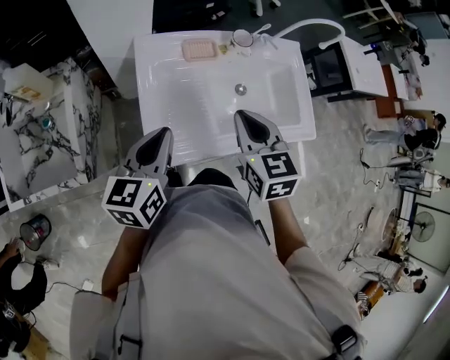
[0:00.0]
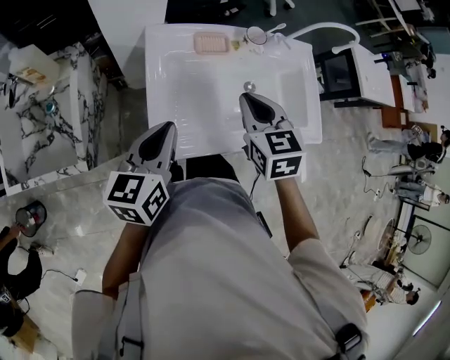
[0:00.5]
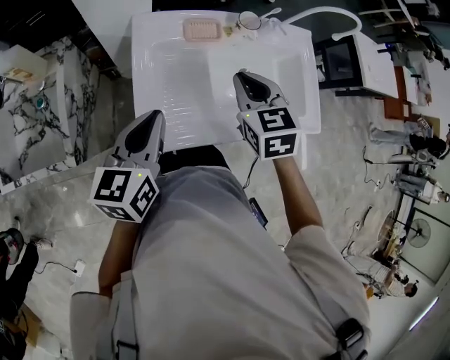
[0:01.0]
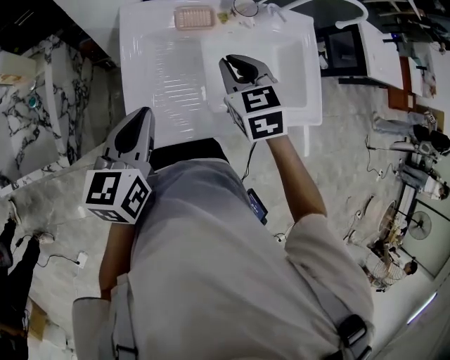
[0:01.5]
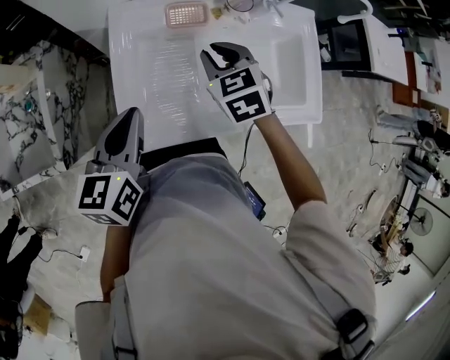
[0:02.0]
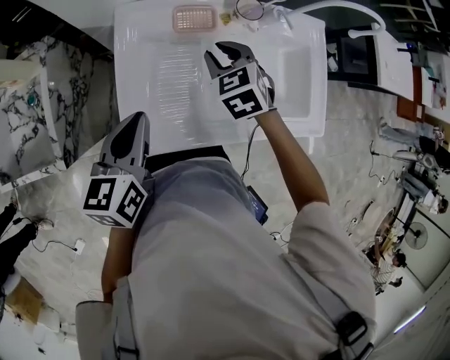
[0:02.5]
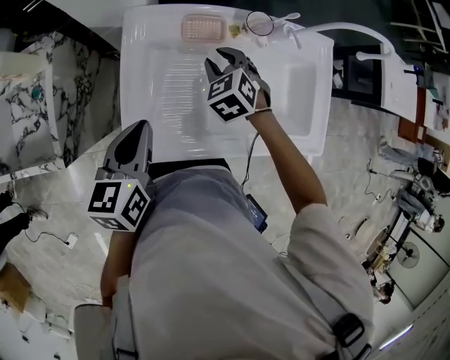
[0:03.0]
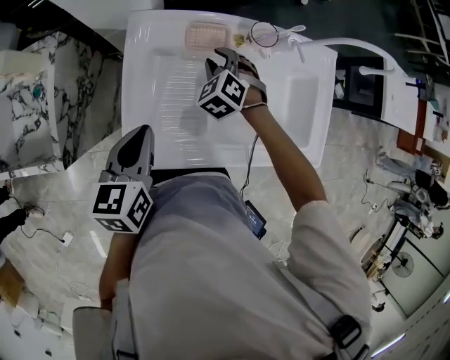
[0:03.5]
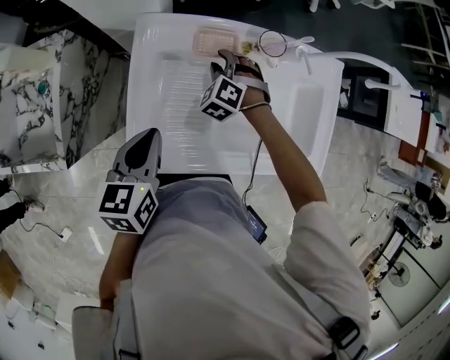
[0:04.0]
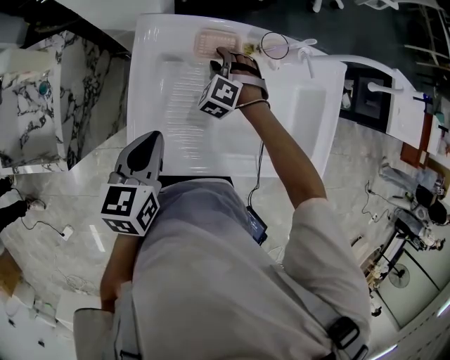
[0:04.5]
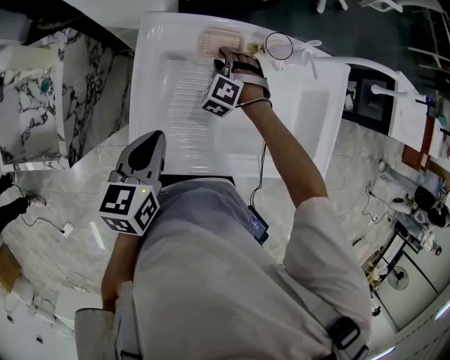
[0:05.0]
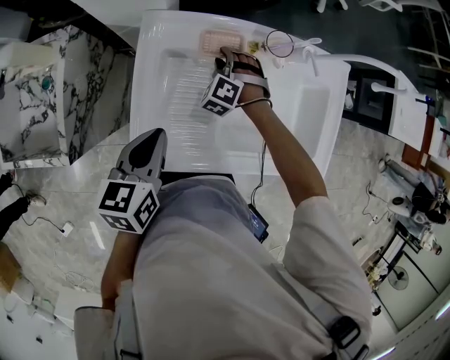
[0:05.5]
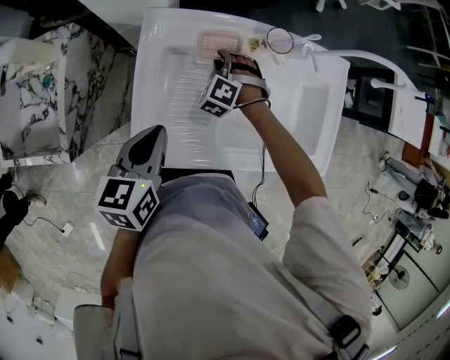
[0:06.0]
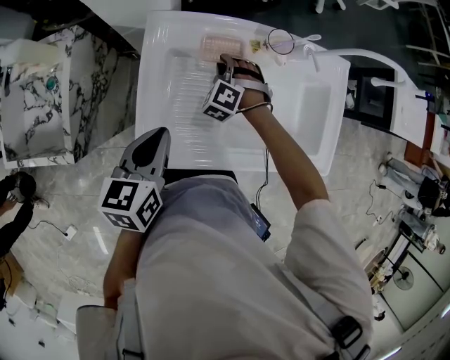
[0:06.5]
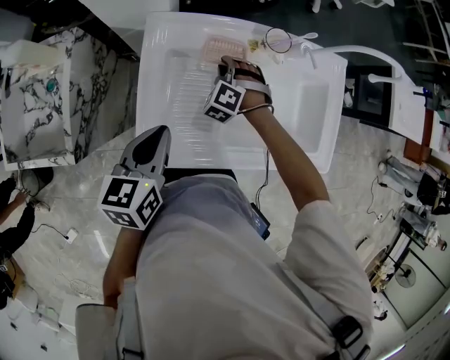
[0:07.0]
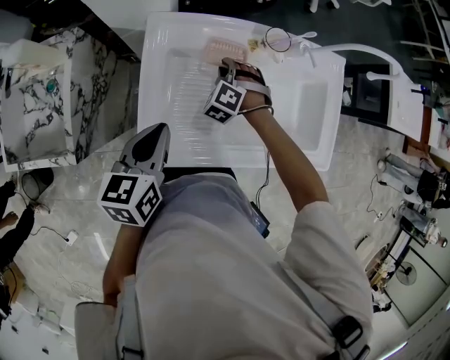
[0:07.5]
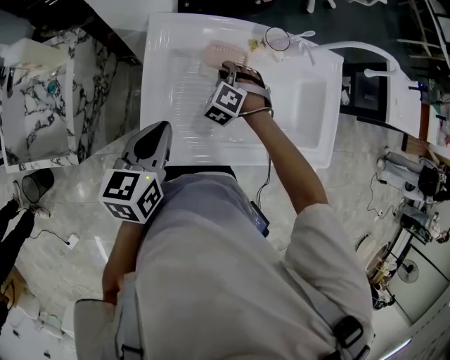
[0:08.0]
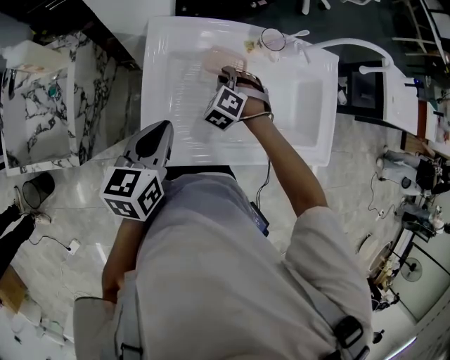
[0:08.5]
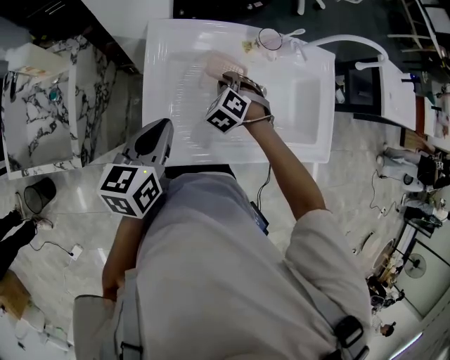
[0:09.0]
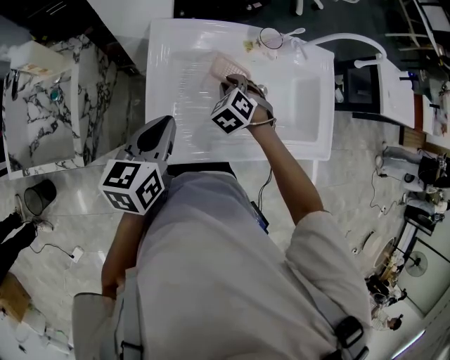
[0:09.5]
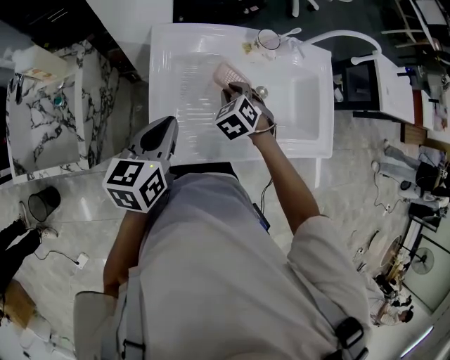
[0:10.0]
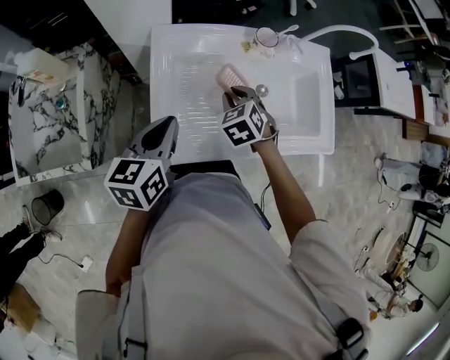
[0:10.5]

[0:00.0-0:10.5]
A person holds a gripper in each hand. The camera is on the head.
0:00.0 to 0:02.0: The right gripper moves forward and downward, about 15 cm, and swivels about 20 degrees.
0:02.0 to 0:04.0: The right gripper goes some 15 cm downward and forward, and twists about 40 degrees counterclockwise, seen from behind. The left gripper moves about 5 cm.
0:04.0 to 0:06.5: The grippers move only a little.
0:06.5 to 0:08.5: The right gripper ends up about 5 cm from where it was.
0:08.5 to 0:10.5: The right gripper moves backward and upward, some 10 cm, and changes its angle by approximately 30 degrees.

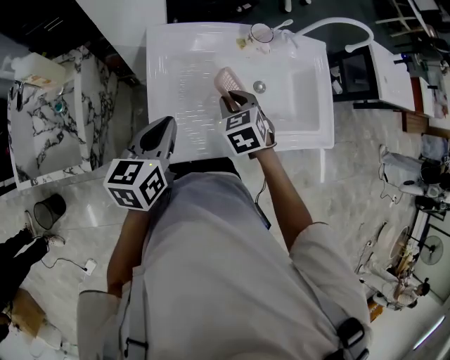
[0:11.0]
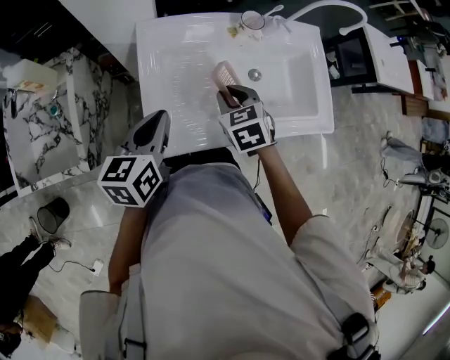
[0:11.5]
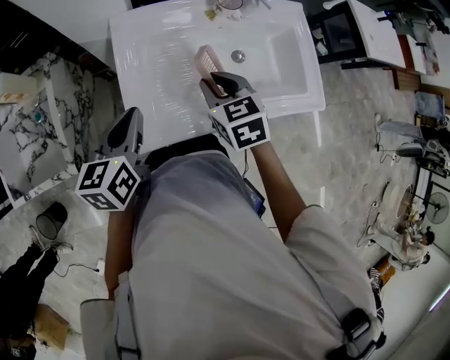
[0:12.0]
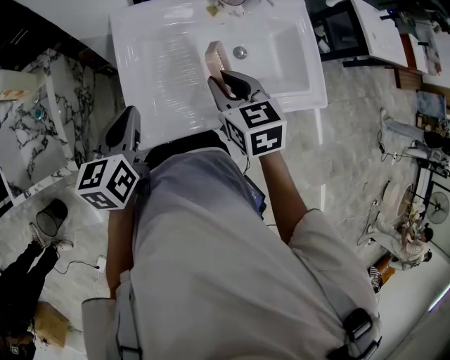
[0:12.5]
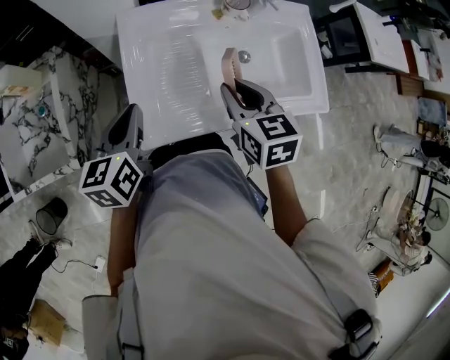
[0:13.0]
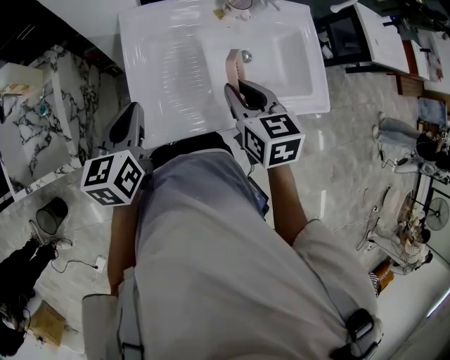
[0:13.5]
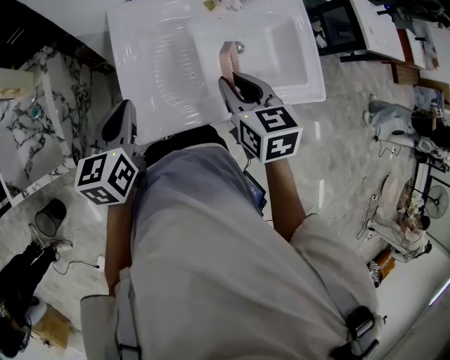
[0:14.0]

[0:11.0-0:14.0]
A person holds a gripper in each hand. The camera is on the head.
0:11.0 to 0:12.5: The right gripper is displaced upward by roughly 10 cm, and changes its angle by roughly 20 degrees.
0:12.5 to 0:14.0: There are only small adjustments of the grippers.

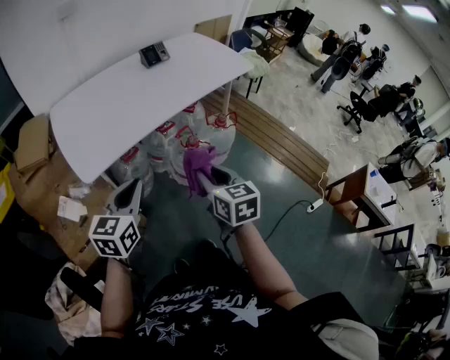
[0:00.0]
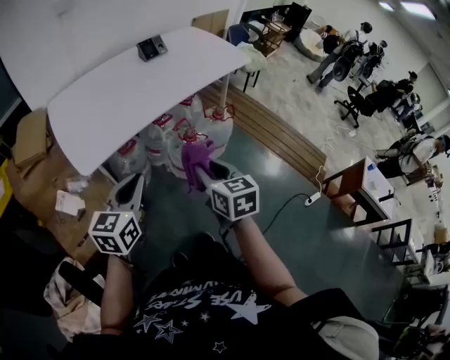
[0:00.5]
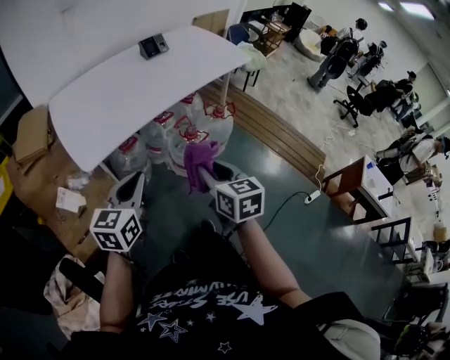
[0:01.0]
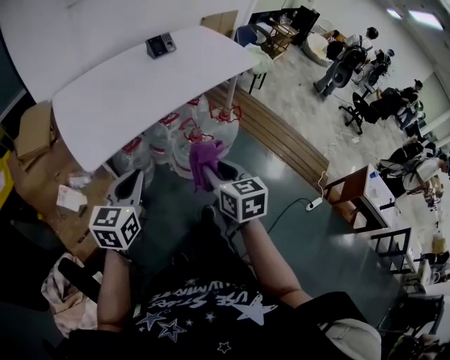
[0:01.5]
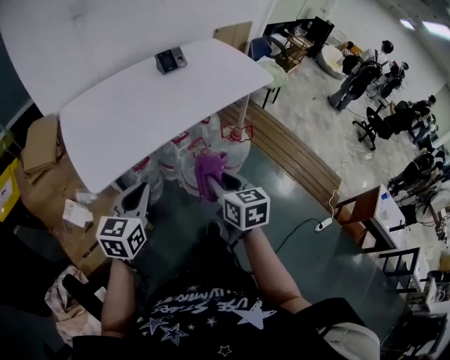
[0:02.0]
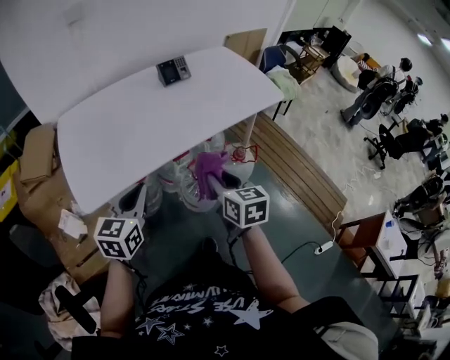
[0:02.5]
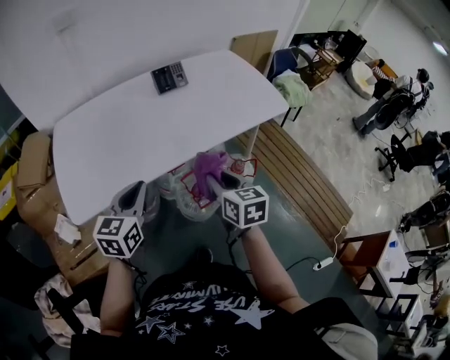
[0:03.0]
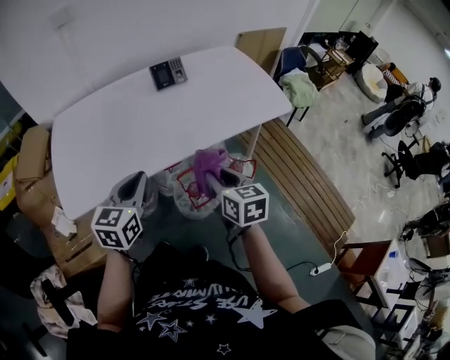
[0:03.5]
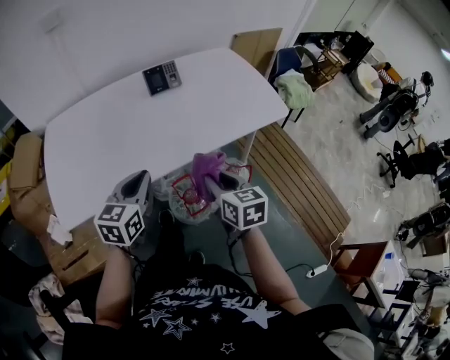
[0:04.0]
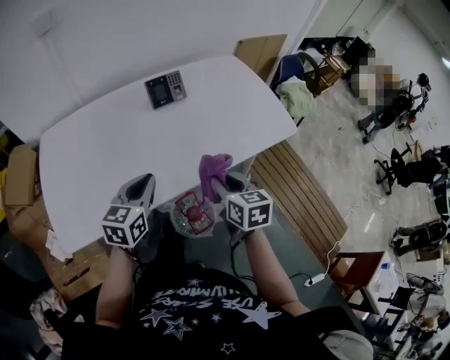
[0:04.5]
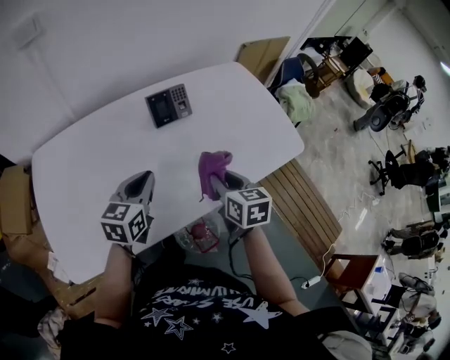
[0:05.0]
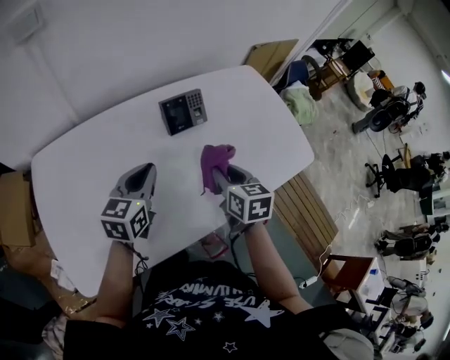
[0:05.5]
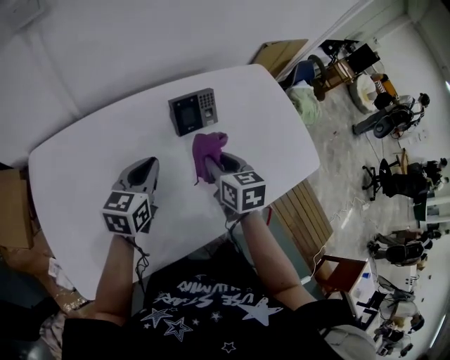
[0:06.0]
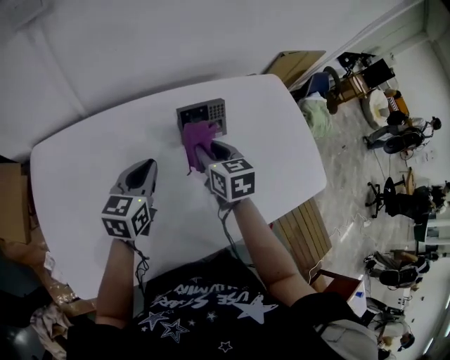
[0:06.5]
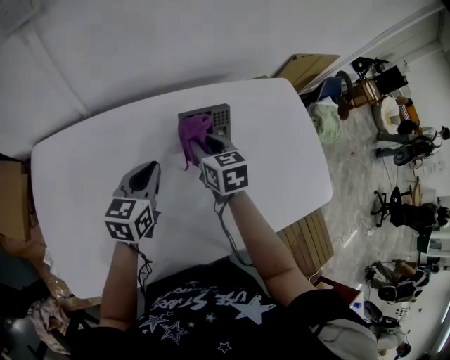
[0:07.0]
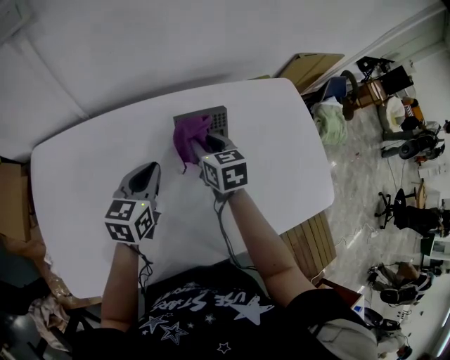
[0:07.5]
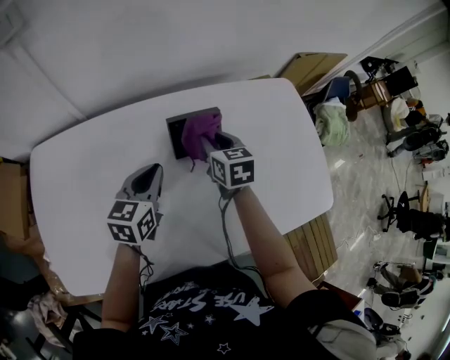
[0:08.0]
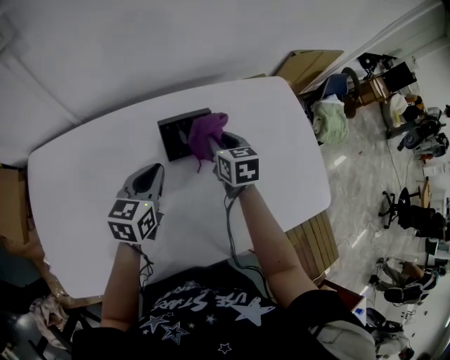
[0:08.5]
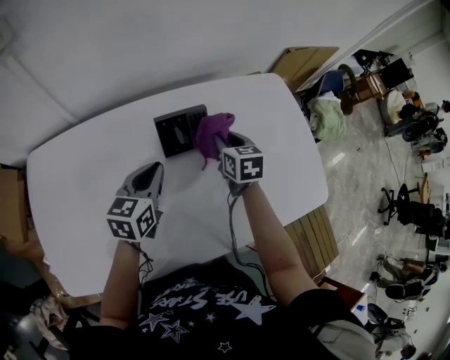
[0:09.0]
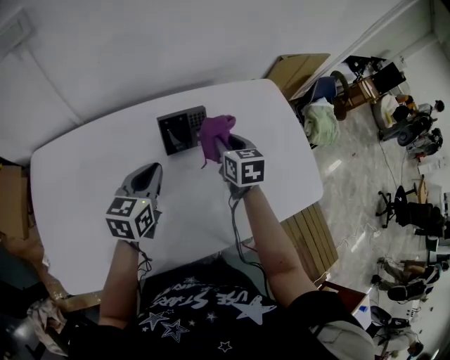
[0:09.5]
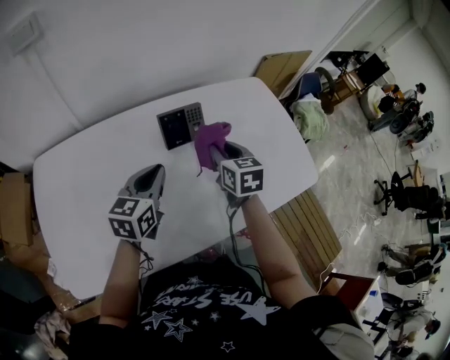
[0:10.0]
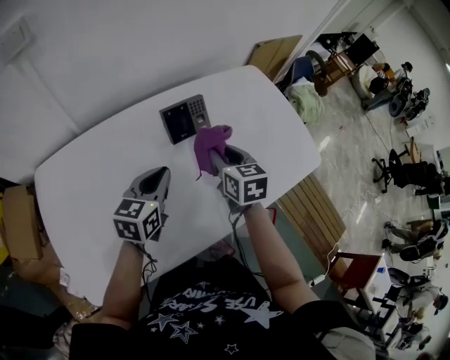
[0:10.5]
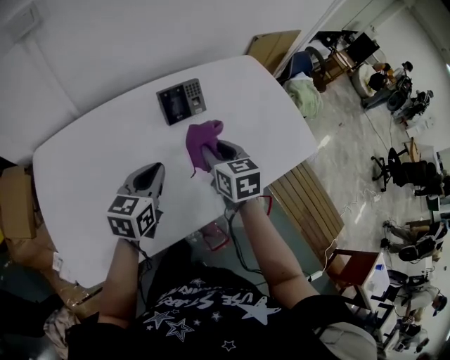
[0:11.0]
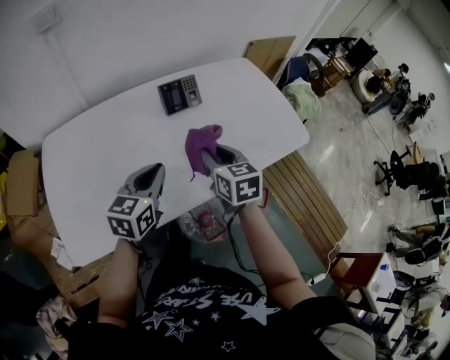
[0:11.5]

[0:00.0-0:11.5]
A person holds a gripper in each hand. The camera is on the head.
0:00.0 to 0:02.0: The two grippers go some 5 cm forward.
0:02.0 to 0:04.0: The two grippers go about 30 cm forward and to the right.
0:04.0 to 0:06.0: The two grippers go some 35 cm forward and to the left.
0:06.0 to 0:07.5: The left gripper travels forward by about 5 cm. Meanwhile the right gripper goes about 15 cm forward.
0:07.5 to 0:09.5: The left gripper travels to the right by about 5 cm. Meanwhile the right gripper travels to the right by about 10 cm.
0:09.5 to 0:11.5: Both grippers move backward, some 25 cm.

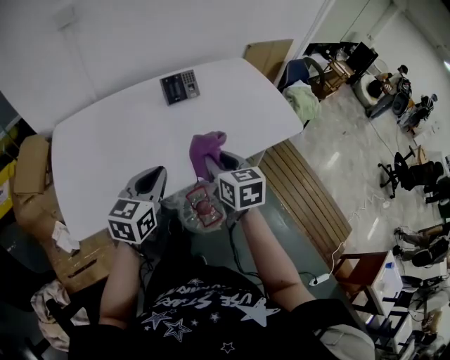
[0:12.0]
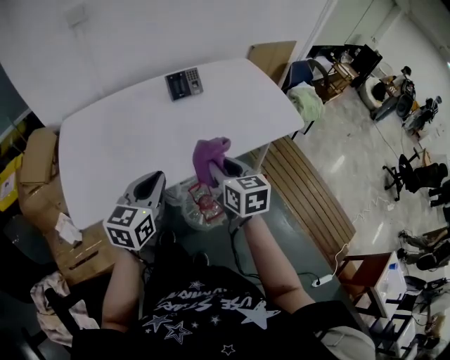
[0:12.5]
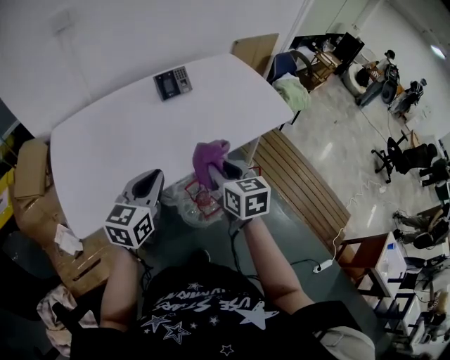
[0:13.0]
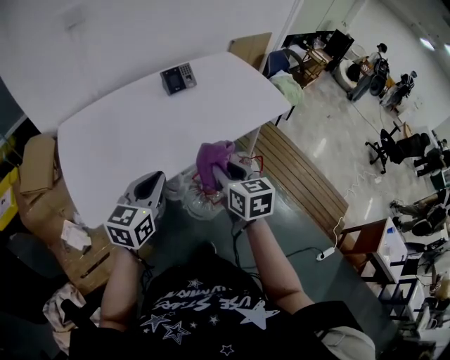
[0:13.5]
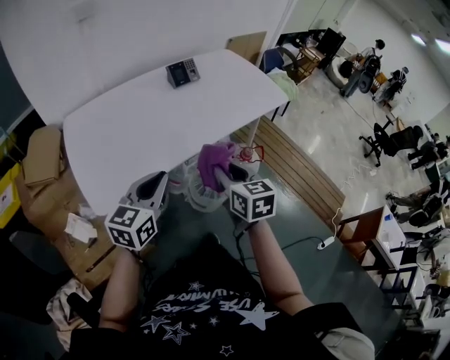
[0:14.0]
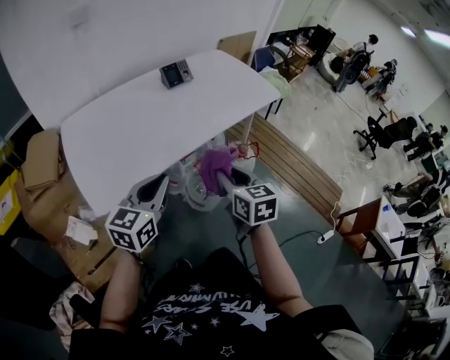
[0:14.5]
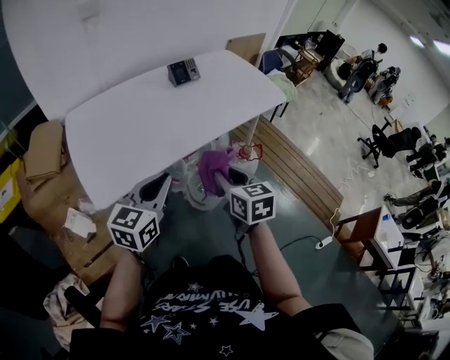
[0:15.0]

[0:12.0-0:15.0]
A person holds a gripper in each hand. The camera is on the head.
0:12.0 to 0:13.5: The right gripper moves backward, roughly 15 cm, while the left gripper travels backward and to the left by roughly 15 cm.
0:13.5 to 0:15.0: The grippers both shift backward by approximately 10 cm.
